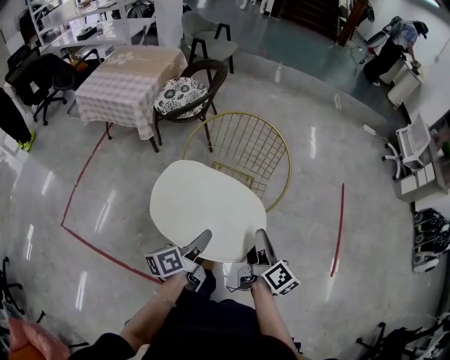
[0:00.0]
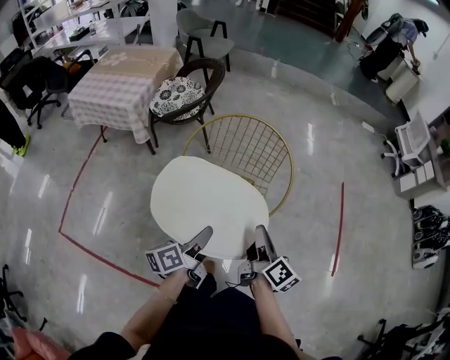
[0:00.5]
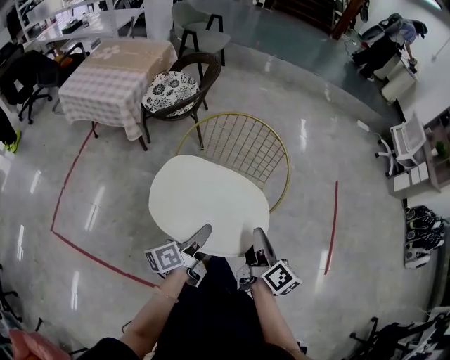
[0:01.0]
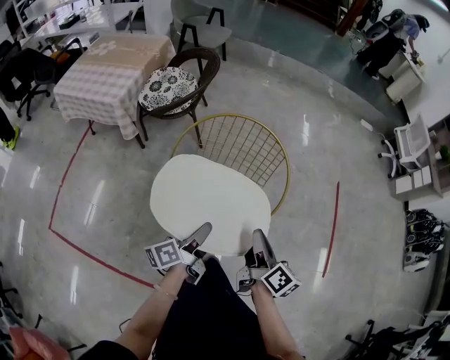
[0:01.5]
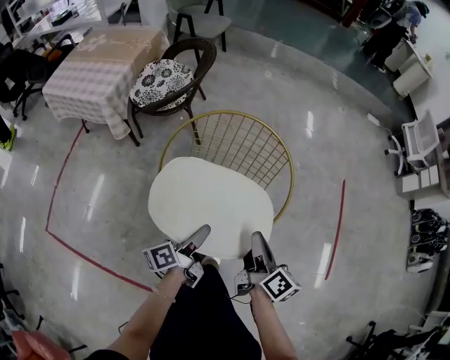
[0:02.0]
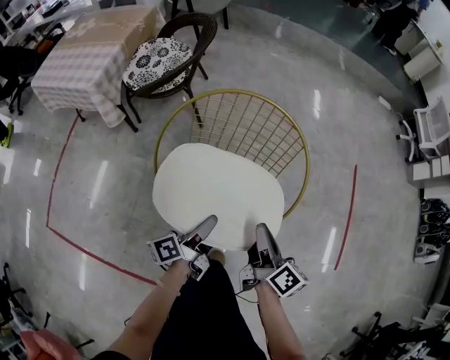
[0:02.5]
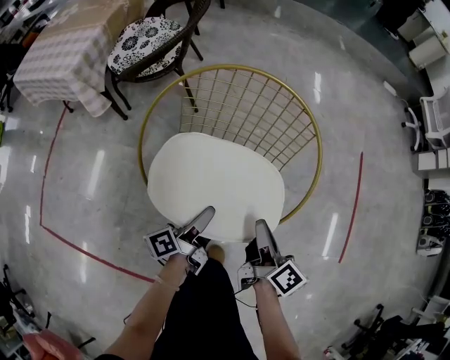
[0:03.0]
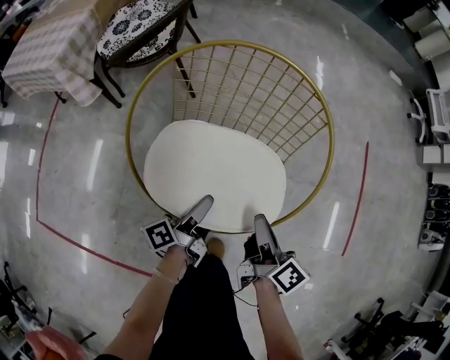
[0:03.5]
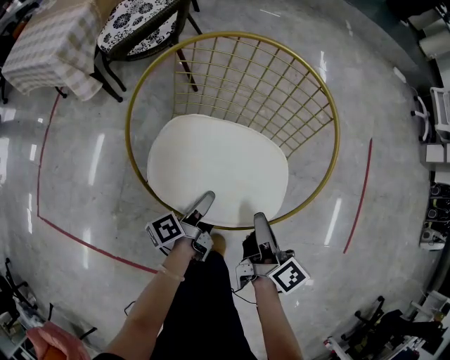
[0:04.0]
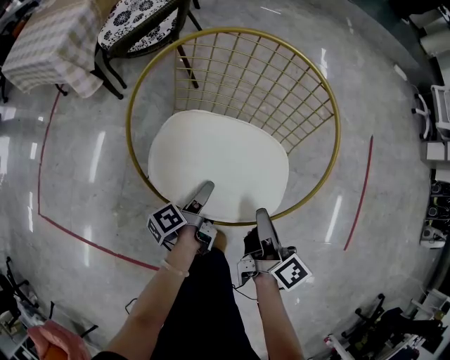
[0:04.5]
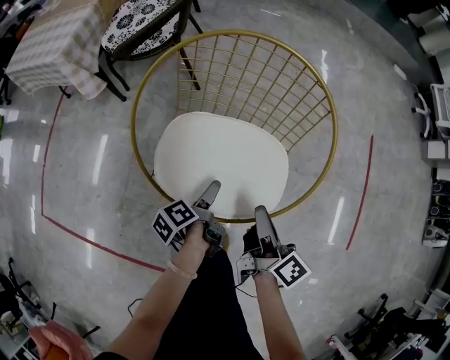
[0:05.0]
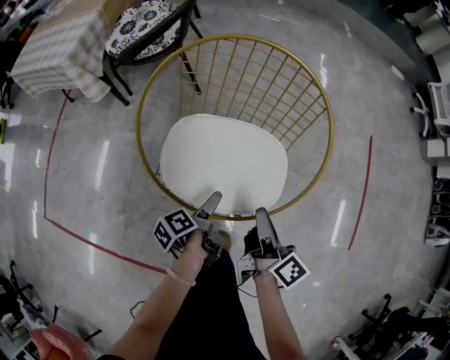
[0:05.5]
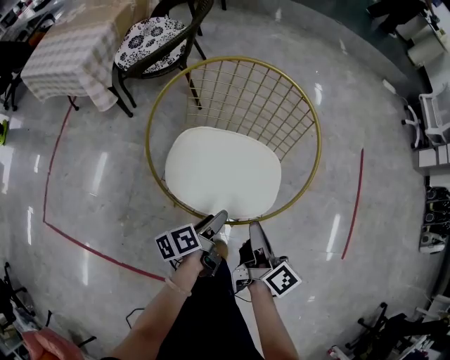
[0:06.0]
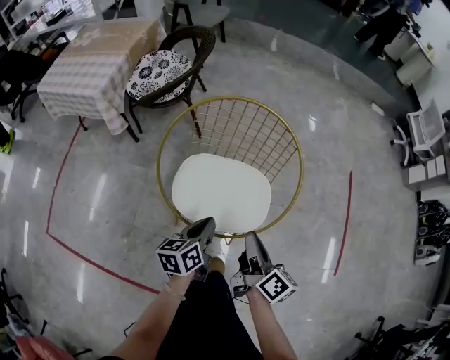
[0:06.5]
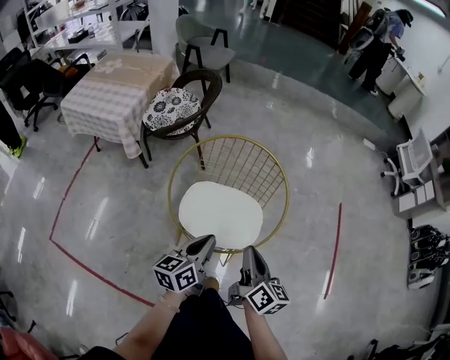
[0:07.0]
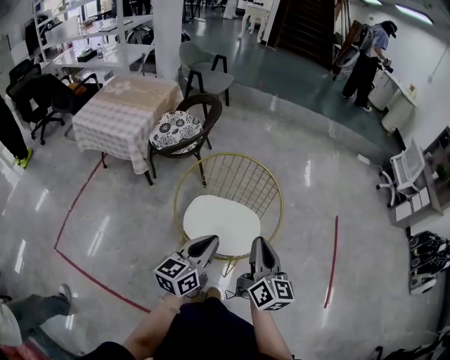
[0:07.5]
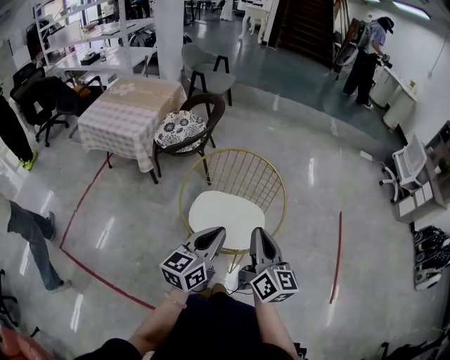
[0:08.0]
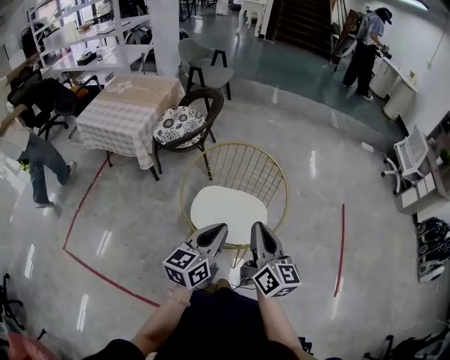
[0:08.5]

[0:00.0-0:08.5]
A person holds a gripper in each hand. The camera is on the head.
0:00.0 to 0:02.0: The two grippers go some 15 cm forward and downward.
0:02.0 to 0:04.0: Both grippers travel together downward, about 20 cm.
0:04.0 to 0:06.5: The right gripper is displaced upward and backward by some 15 cm. Meanwhile the left gripper moves upward, roughly 15 cm, rotates around the line of its fingers by approximately 40 degrees, clockwise from behind, and opens, then closes again.
0:06.5 to 0:08.5: Both grippers move upward, roughly 25 cm. The left gripper changes its angle by roughly 30 degrees. The right gripper rotates roughly 40 degrees.

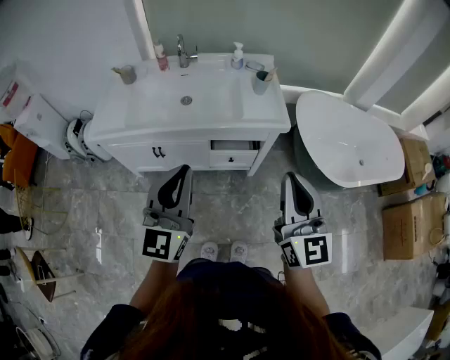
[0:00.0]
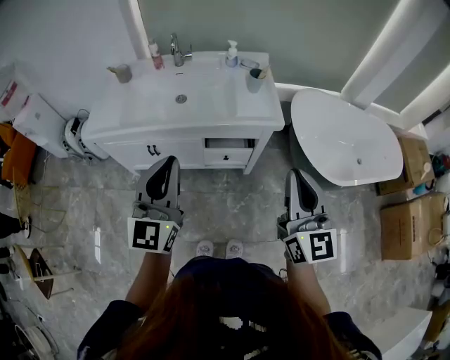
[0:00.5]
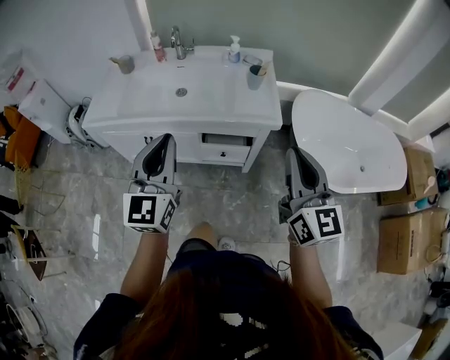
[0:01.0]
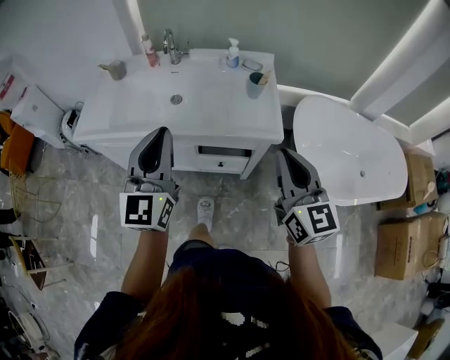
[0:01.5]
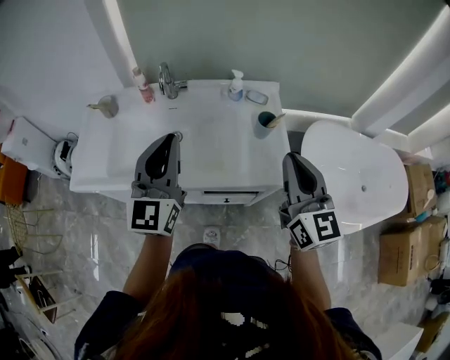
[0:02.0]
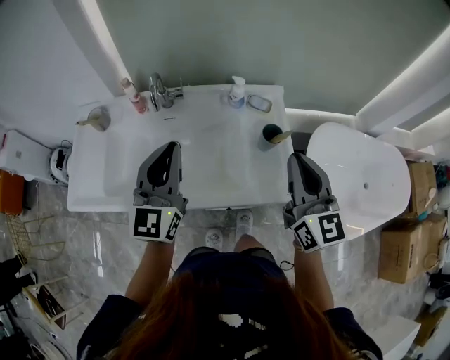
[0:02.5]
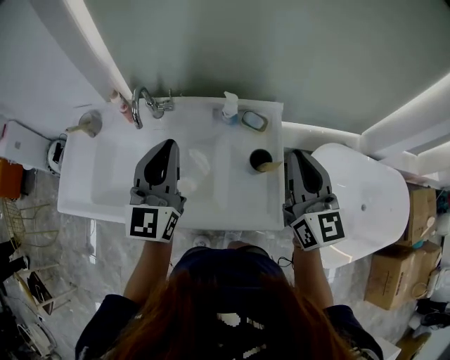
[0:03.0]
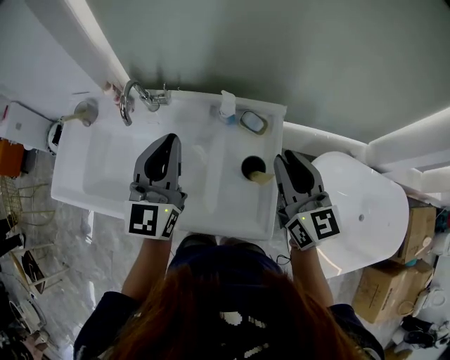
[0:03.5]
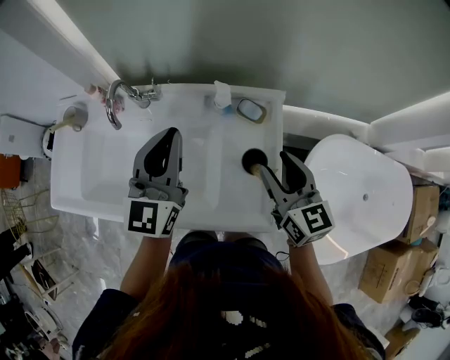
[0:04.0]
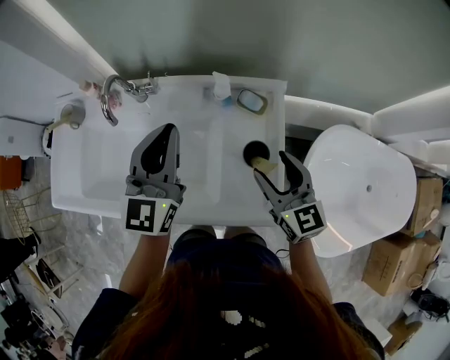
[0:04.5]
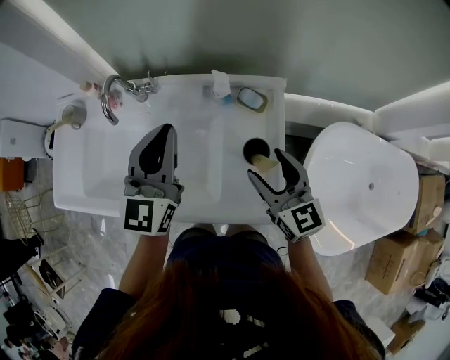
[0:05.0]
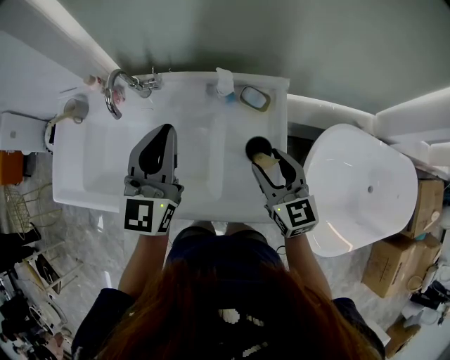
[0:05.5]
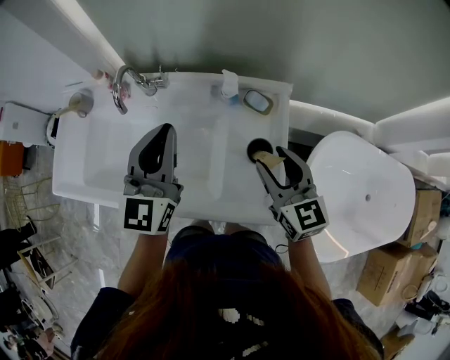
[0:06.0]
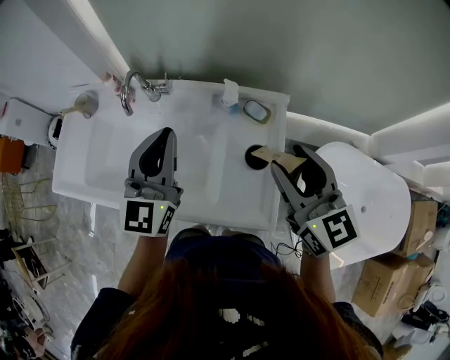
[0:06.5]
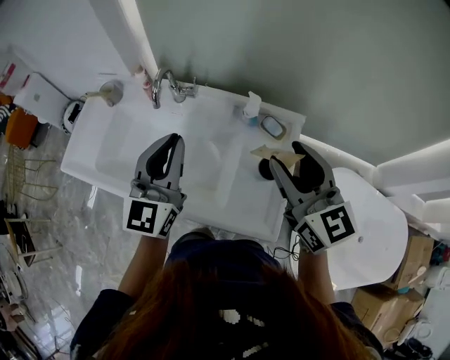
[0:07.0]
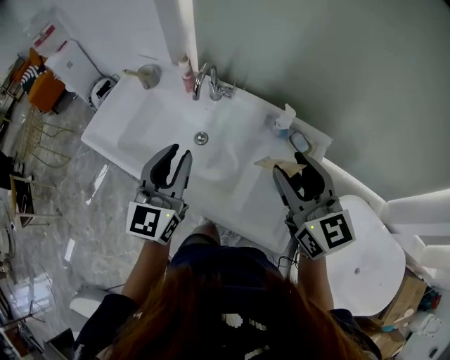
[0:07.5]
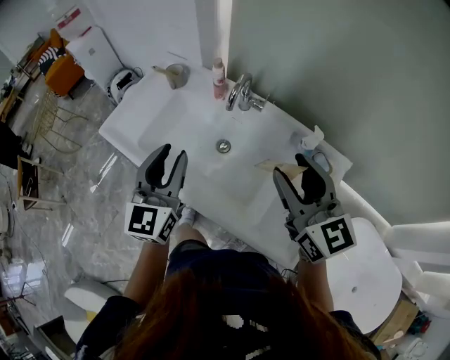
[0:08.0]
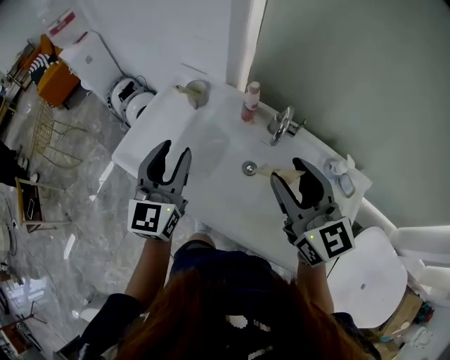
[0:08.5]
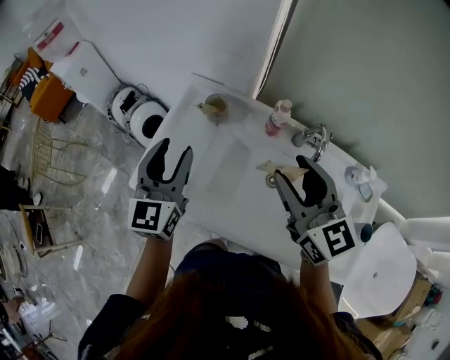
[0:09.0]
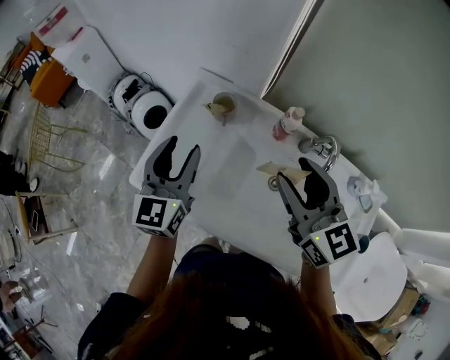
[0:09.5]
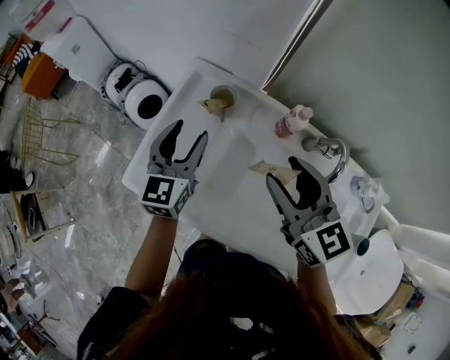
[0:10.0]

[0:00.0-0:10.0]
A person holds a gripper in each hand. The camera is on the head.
0:00.0 to 0:02.0: Both grippers move forward, approximately 35 cm.
0:02.0 to 0:04.0: The left gripper moves forward and to the right, about 30 cm; the right gripper is displaced forward and downward by about 30 cm, rotates about 20 degrees, and opens its fingers.
0:06.0 to 0:08.0: The left gripper changes place by roughly 25 cm, swivels about 30 degrees, and opens its fingers. Meanwhile the right gripper moves some 20 cm, and changes its angle by some 30 degrees.
0:08.0 to 0:10.0: The pair of grippers is taken forward and to the left, about 40 cm. The left gripper opens its fingers.

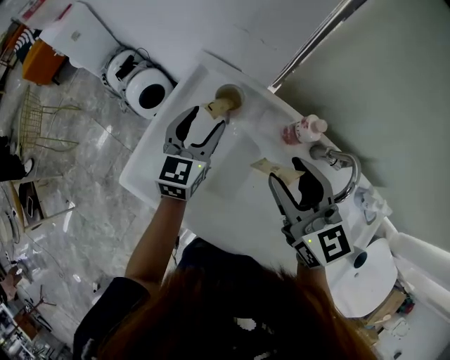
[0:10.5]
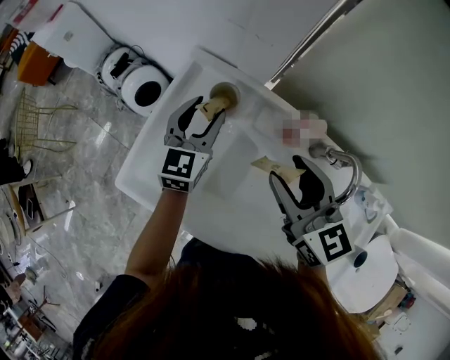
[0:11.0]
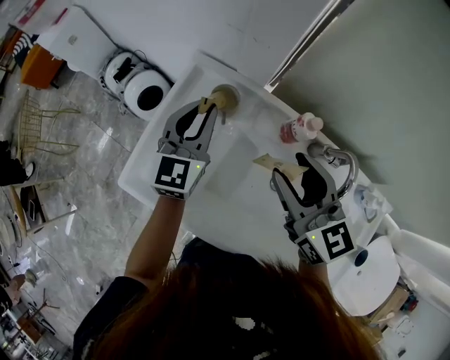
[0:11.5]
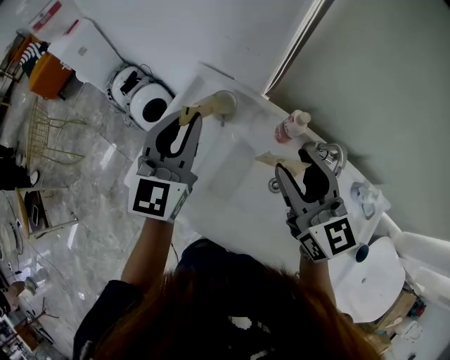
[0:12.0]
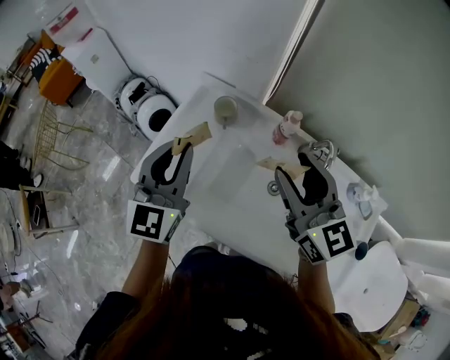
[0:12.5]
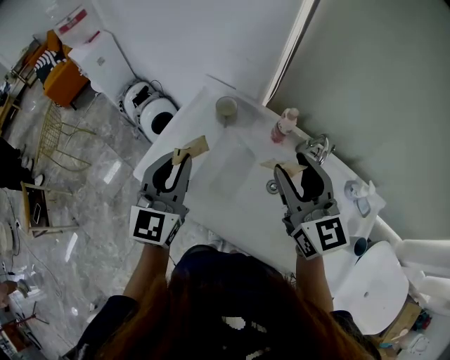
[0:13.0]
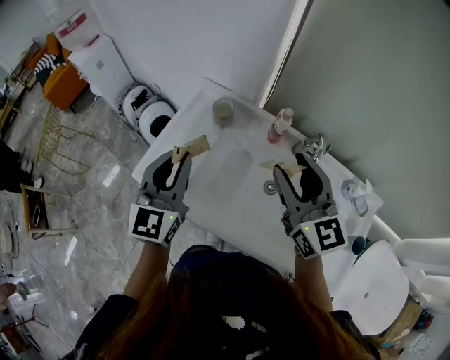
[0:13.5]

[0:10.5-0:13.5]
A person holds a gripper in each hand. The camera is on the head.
0:10.5 to 0:12.0: The right gripper travels upward by some 5 cm. Meanwhile the left gripper moves upward, about 15 cm, and closes up.
0:12.0 to 0:13.5: The left gripper travels backward by roughly 15 cm, while the right gripper goes about 10 cm backward.

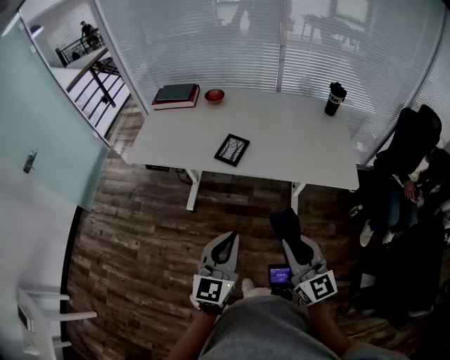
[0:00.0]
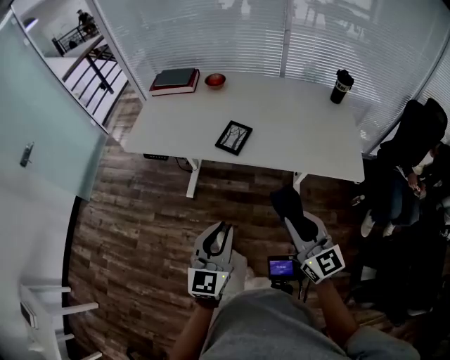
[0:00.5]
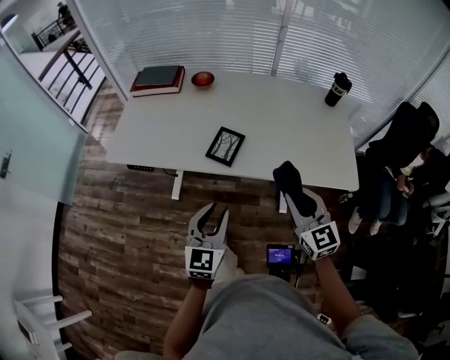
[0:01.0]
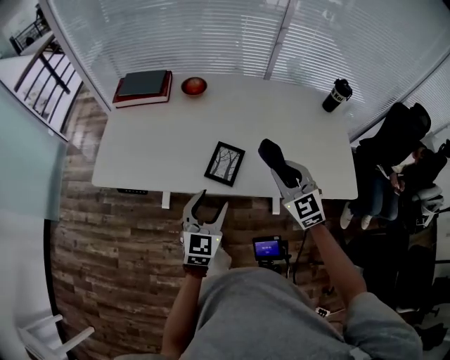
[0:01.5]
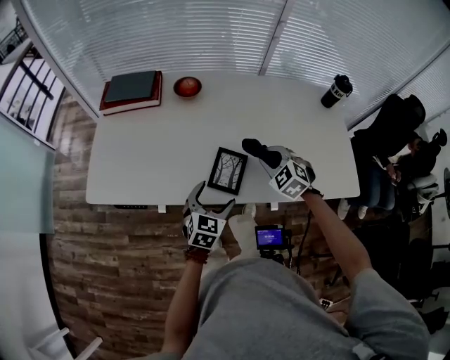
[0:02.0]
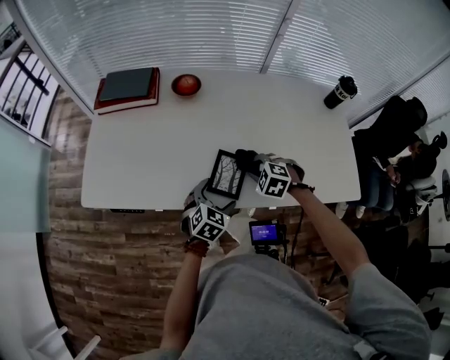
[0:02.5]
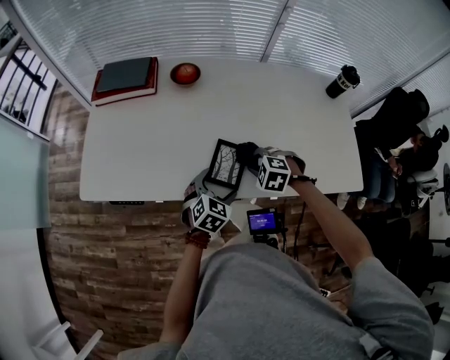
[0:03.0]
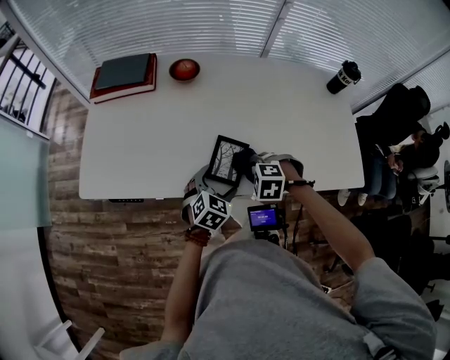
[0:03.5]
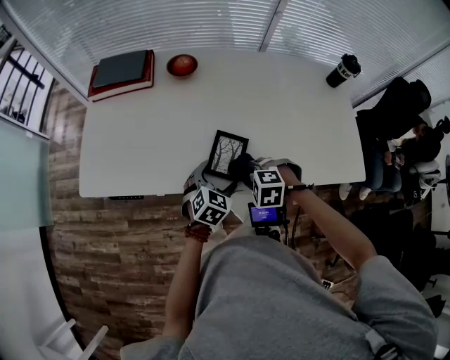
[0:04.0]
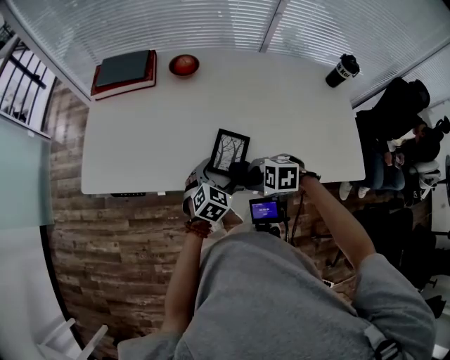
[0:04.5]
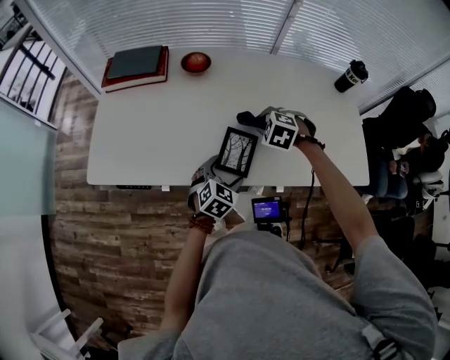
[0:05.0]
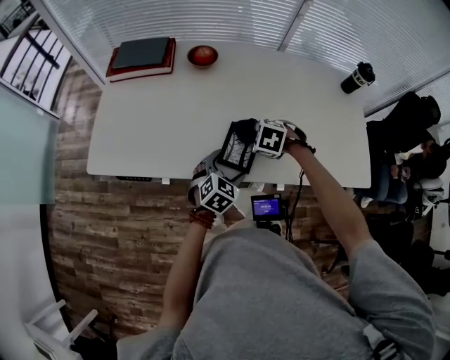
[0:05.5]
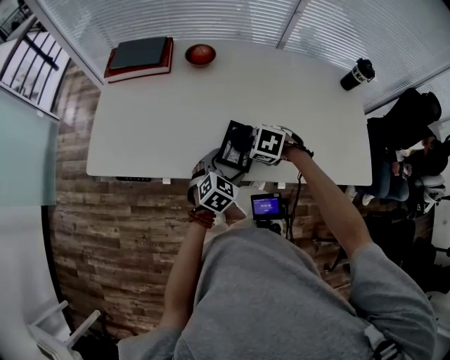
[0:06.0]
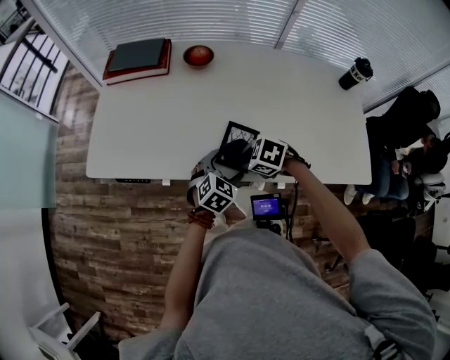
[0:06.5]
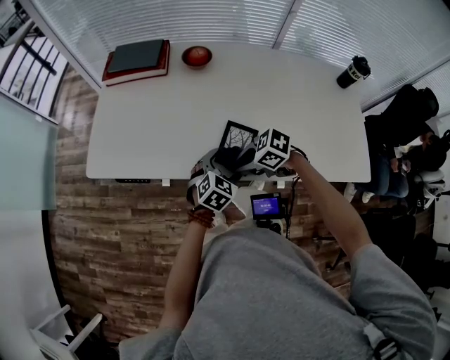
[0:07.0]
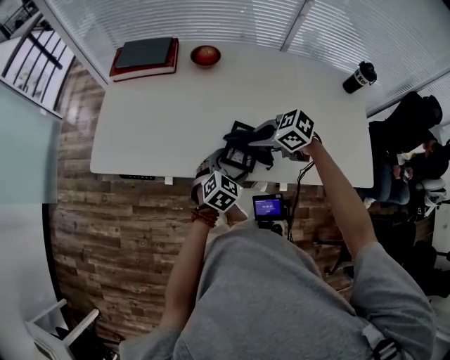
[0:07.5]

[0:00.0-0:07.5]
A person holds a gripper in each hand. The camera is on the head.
0:00.0 to 0:02.0: The right gripper shifts about 50 cm forward, and tilts its fingers approximately 50 degrees downward; the left gripper moves forward and downward, some 40 cm, swivels some 30 degrees, and opens its fingers.
0:02.0 to 0:04.0: The right gripper ends up roughly 15 cm from where it was, and changes its angle by approximately 40 degrees. The left gripper travels downward by approximately 5 cm.
0:05.5 to 0:07.5: The right gripper heads upward, covering roughly 5 cm, and tilts its fingers some 30 degrees upward.
